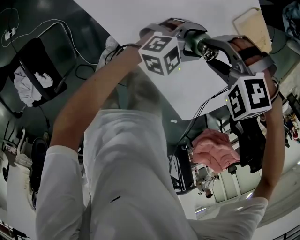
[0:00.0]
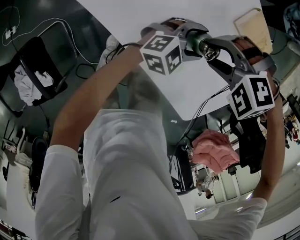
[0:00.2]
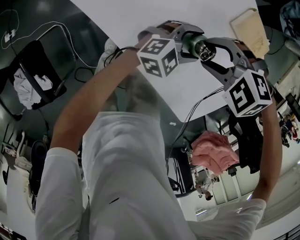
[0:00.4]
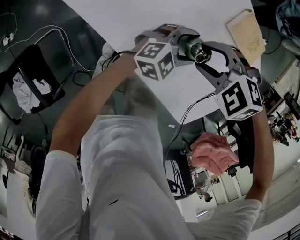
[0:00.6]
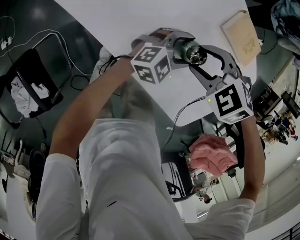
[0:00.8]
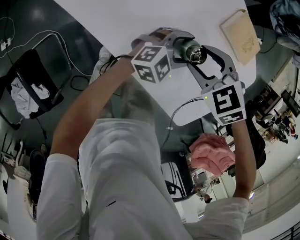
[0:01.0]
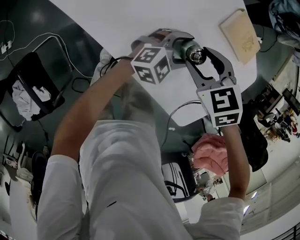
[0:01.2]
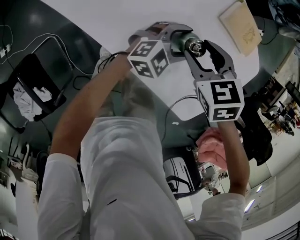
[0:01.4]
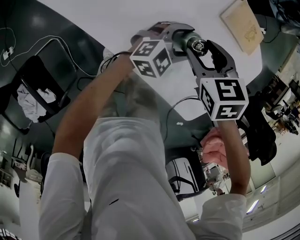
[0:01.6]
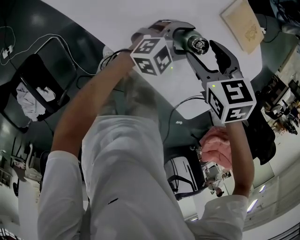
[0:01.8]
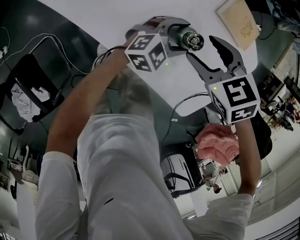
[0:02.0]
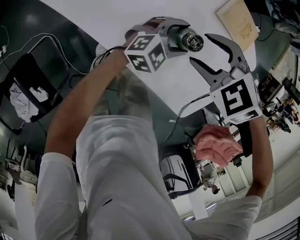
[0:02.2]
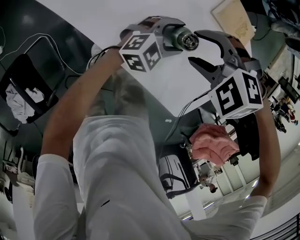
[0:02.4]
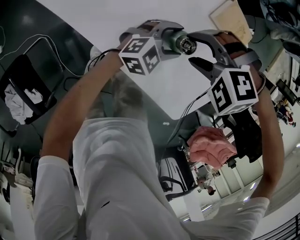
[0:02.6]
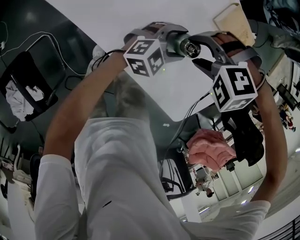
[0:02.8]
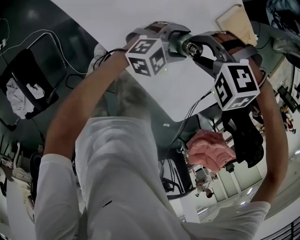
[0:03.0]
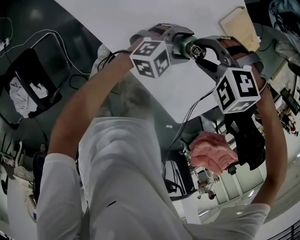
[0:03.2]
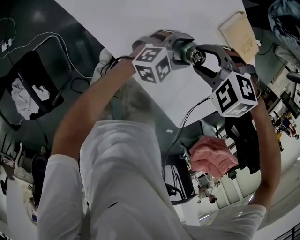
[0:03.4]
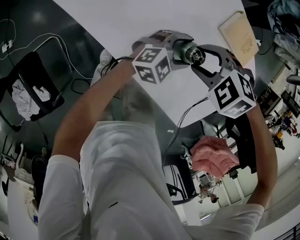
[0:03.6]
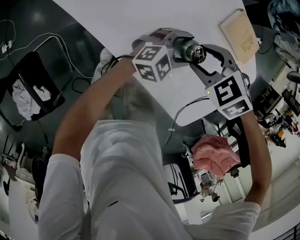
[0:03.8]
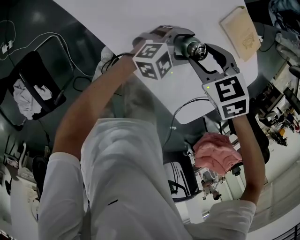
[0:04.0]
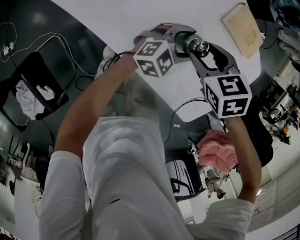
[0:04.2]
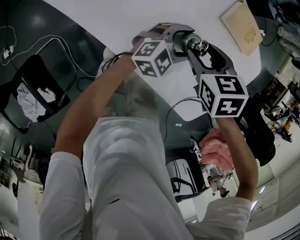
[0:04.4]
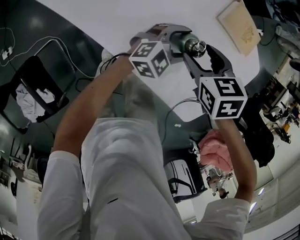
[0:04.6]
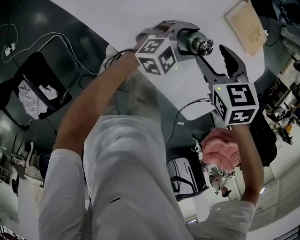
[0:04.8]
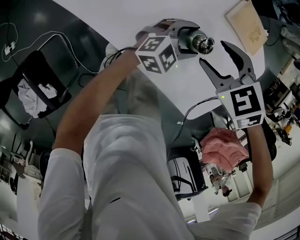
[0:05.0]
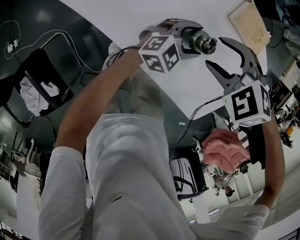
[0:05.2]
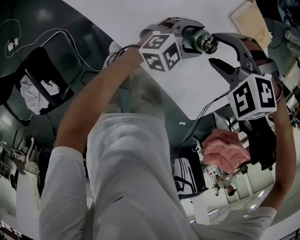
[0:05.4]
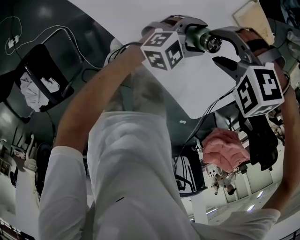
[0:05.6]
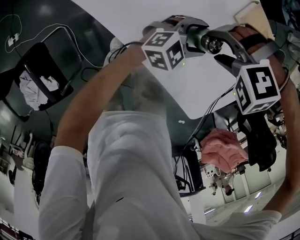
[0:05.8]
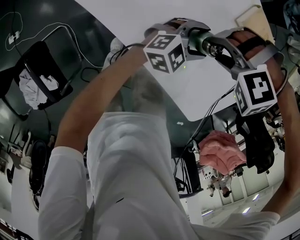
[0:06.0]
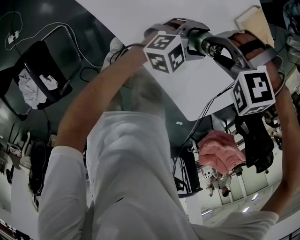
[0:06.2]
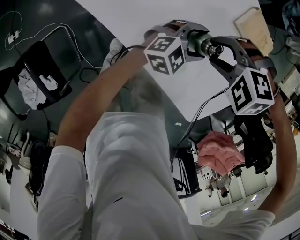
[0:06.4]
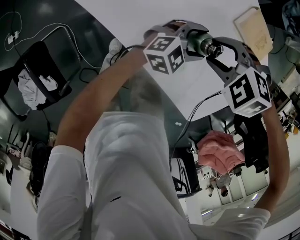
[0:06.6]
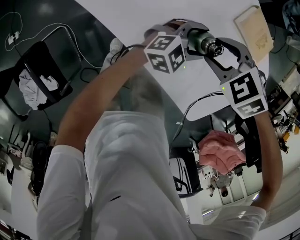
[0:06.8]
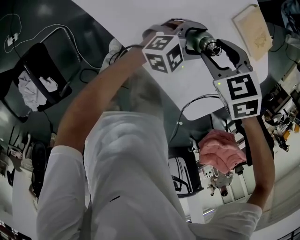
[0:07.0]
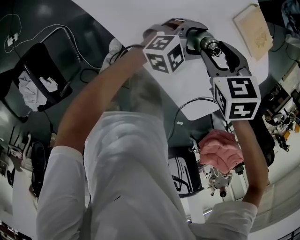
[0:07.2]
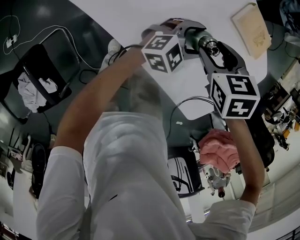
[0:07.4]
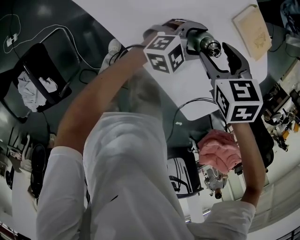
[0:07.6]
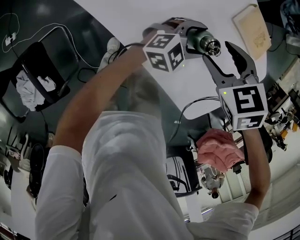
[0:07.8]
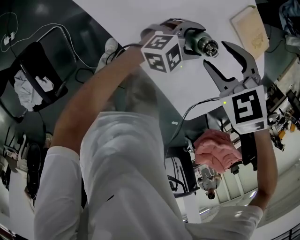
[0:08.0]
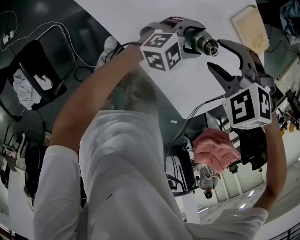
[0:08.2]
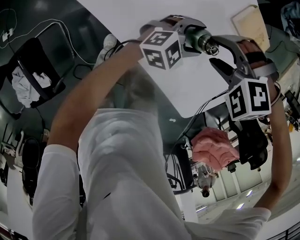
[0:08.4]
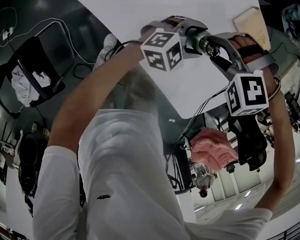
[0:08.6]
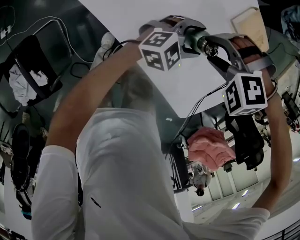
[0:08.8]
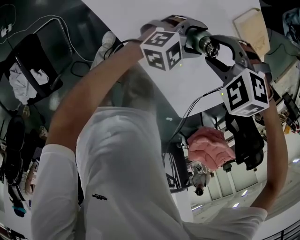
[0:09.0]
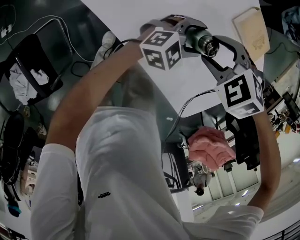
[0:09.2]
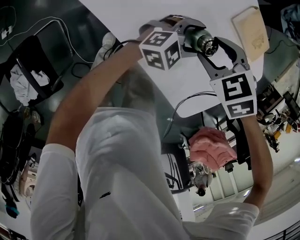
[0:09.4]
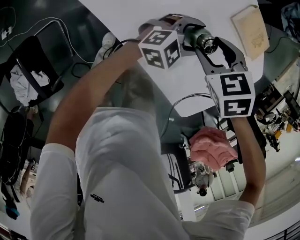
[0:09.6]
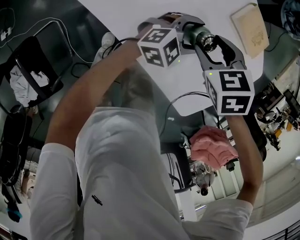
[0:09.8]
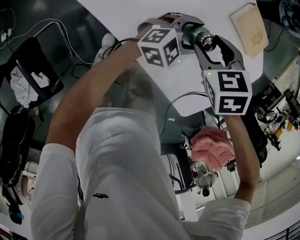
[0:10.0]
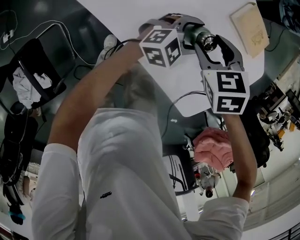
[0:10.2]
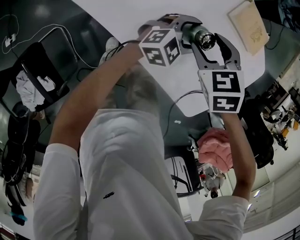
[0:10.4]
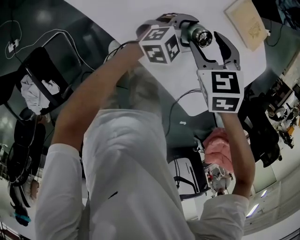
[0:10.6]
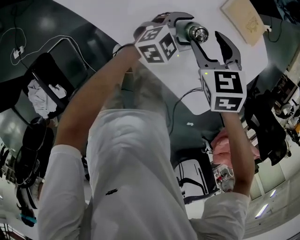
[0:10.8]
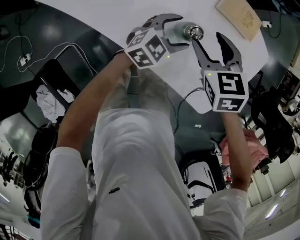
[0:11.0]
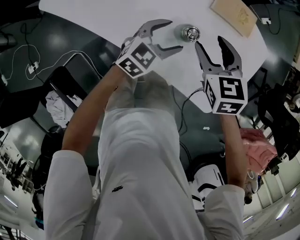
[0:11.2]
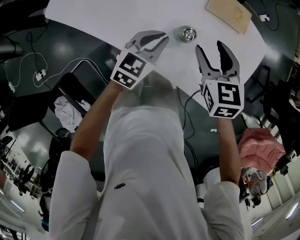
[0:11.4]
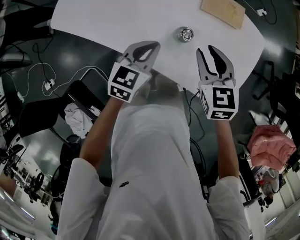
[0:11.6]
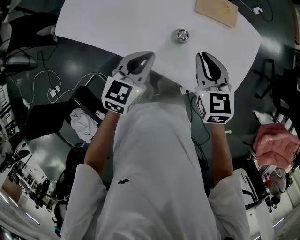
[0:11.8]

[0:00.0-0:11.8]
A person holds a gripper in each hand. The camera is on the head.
0:00.0 to 0:01.4: The right gripper rolls clockwise, seen from behind, by about 80 degrees.
0:01.4 to 0:03.0: The right gripper twists some 80 degrees counterclockwise, seen from behind.
0:03.0 to 0:04.4: The right gripper twists about 90 degrees clockwise, seen from behind.
0:04.4 to 0:06.0: The right gripper twists approximately 100 degrees counterclockwise, seen from behind.
0:06.0 to 0:07.4: The right gripper rolls clockwise, seen from behind, by roughly 100 degrees.
0:07.4 to 0:08.8: The right gripper rolls counterclockwise, seen from behind, by about 90 degrees.
0:08.8 to 0:10.4: The right gripper rotates around the line of its fingers by some 80 degrees, clockwise from behind.
0:10.4 to 0:11.8: The right gripper goes approximately 15 cm upward, tips its fingers upward by some 30 degrees, and closes. The left gripper goes about 25 cm upward, to the left and backward, turns by approximately 20 degrees, and closes up.

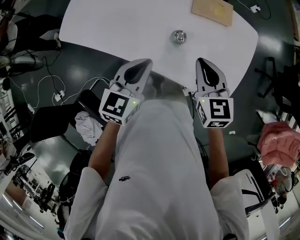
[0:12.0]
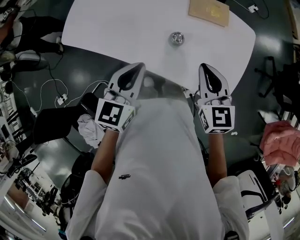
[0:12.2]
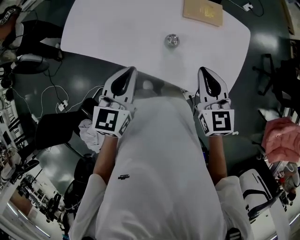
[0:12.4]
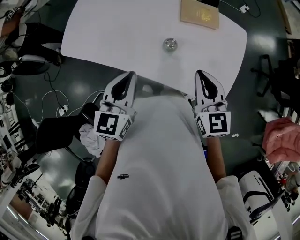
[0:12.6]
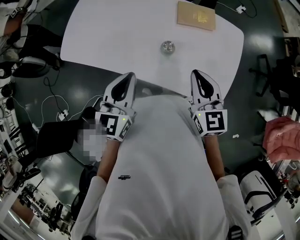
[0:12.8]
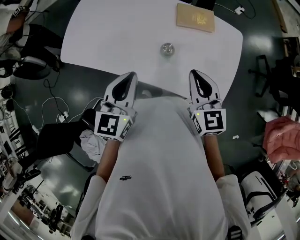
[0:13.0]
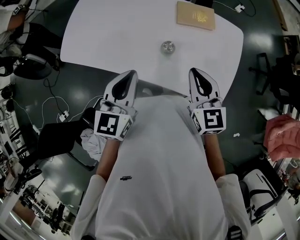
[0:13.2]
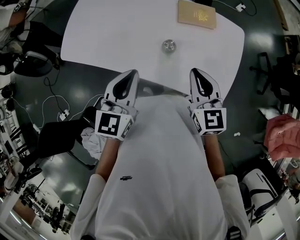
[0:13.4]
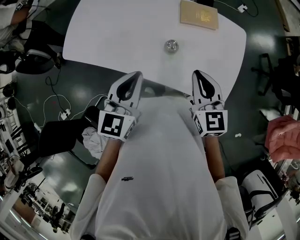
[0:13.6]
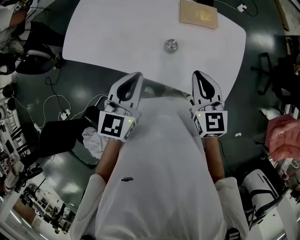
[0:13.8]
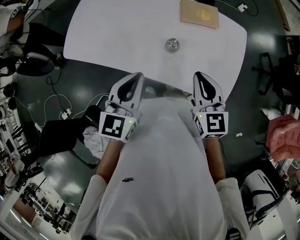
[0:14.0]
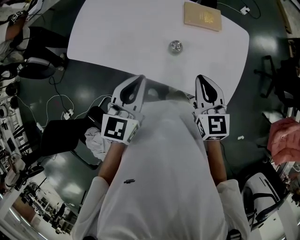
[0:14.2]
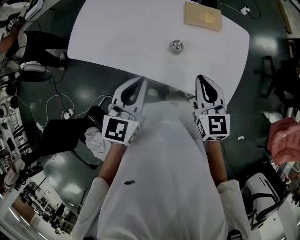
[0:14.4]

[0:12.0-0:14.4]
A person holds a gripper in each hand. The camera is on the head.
0:12.0 to 0:13.2: The left gripper heads upward, covering about 5 cm. Meanwhile the right gripper ends up some 5 cm from where it was.
0:13.2 to 0:14.4: There are only small adjustments of the grippers.

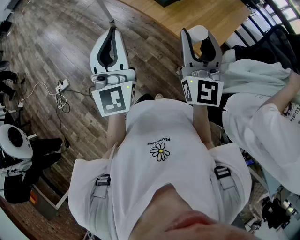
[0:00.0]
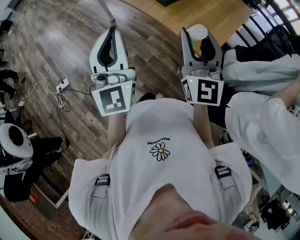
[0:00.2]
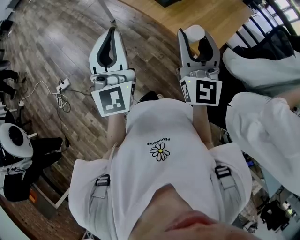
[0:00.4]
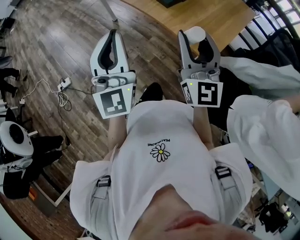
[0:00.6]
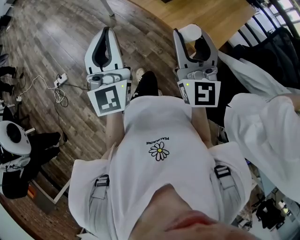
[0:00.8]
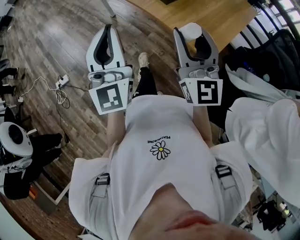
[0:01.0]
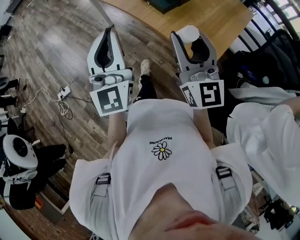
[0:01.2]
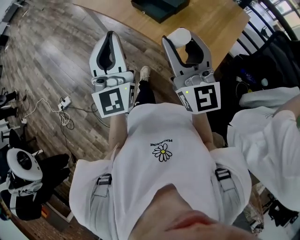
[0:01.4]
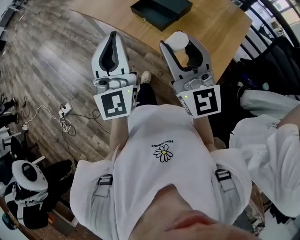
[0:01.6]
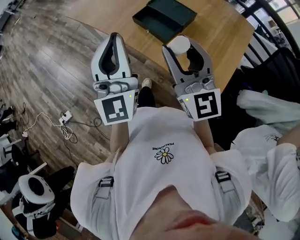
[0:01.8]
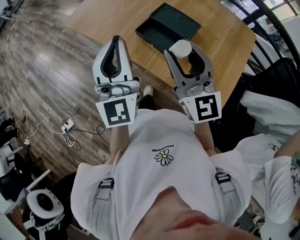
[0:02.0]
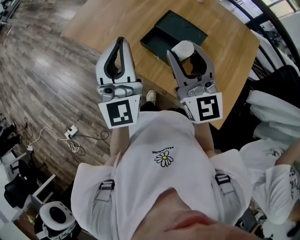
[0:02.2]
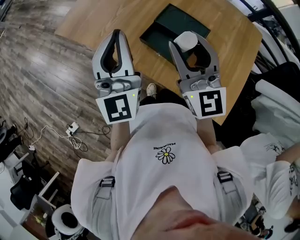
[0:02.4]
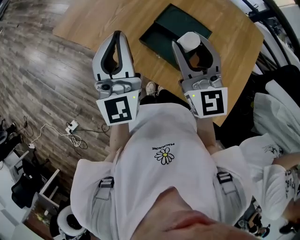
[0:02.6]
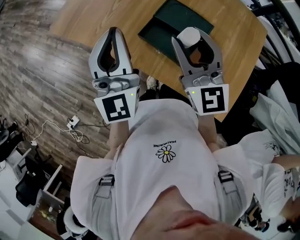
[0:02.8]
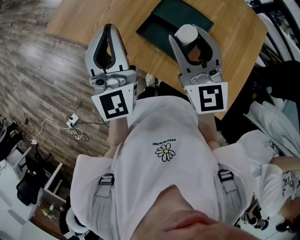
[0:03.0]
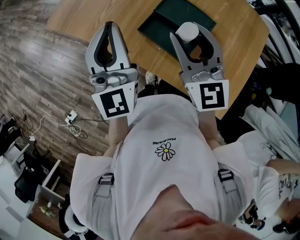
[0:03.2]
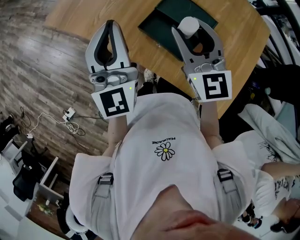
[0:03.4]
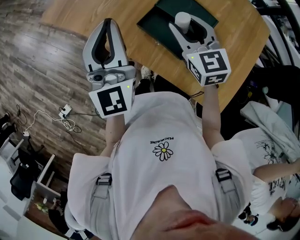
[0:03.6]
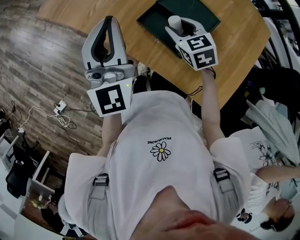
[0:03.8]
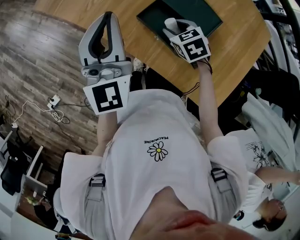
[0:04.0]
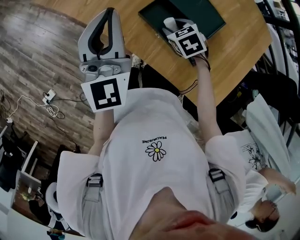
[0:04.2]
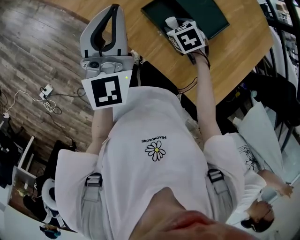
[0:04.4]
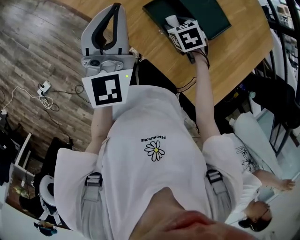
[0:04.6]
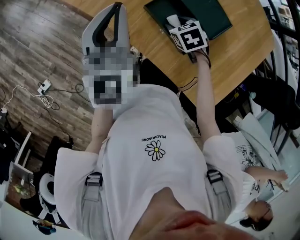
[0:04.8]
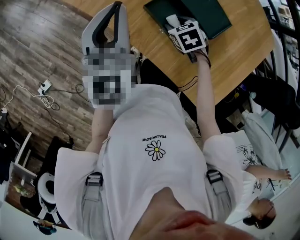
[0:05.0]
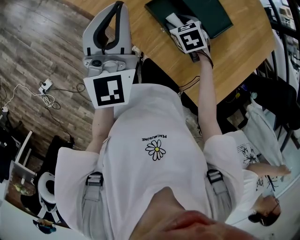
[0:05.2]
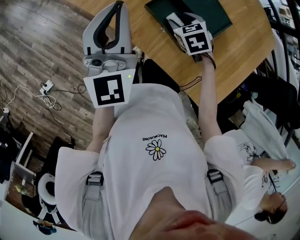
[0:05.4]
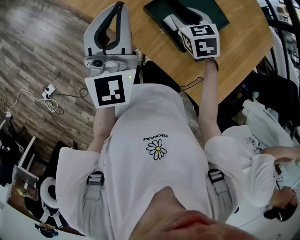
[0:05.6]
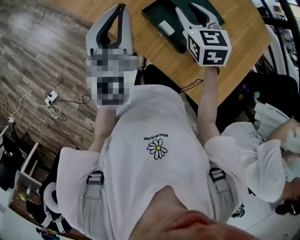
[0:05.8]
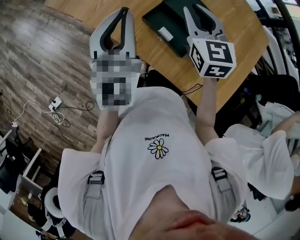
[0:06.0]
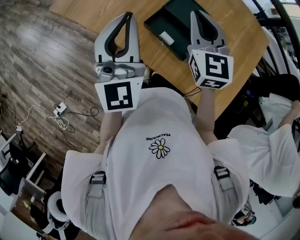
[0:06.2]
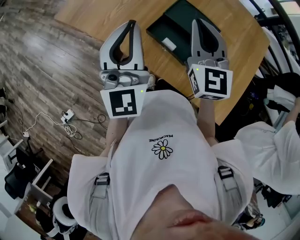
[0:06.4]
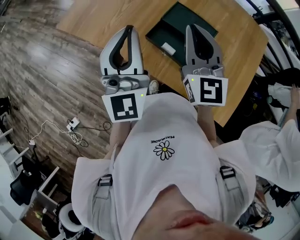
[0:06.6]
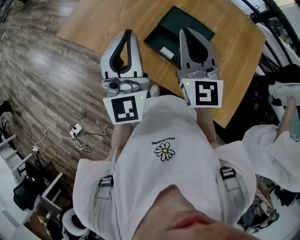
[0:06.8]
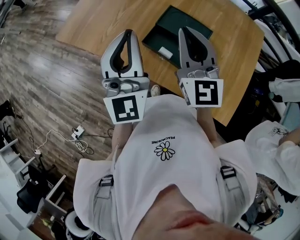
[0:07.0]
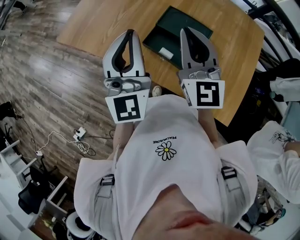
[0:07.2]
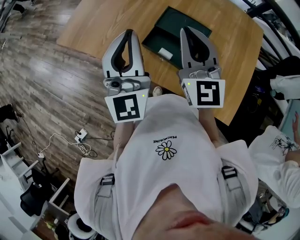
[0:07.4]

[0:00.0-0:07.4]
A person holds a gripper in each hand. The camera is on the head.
0:00.0 to 0:01.4: The grippers both shift forward by roughly 10 cm.
0:01.4 to 0:03.0: Both grippers move forward, approximately 35 cm. The right gripper turns by approximately 20 degrees.
0:03.0 to 0:04.4: The right gripper travels downward by approximately 30 cm, and tilts its fingers about 70 degrees downward; the left gripper travels downward by about 5 cm.
0:04.4 to 0:06.0: The left gripper goes some 5 cm upward. The right gripper is displaced upward by about 25 cm, tips its fingers upward by some 50 degrees, and closes its fingers.
0:06.0 to 0:07.4: The left gripper moves roughly 5 cm; the right gripper shifts some 15 cm upward and backward, and rotates about 30 degrees.

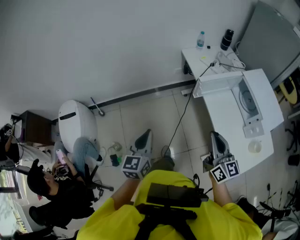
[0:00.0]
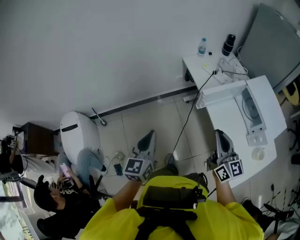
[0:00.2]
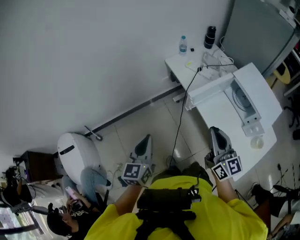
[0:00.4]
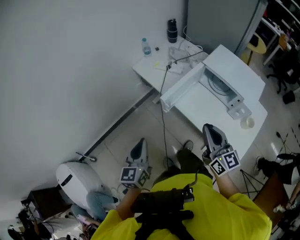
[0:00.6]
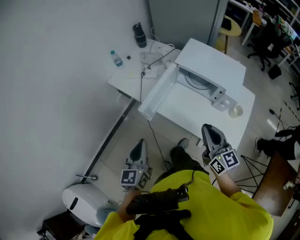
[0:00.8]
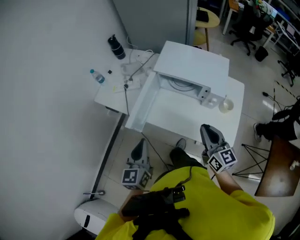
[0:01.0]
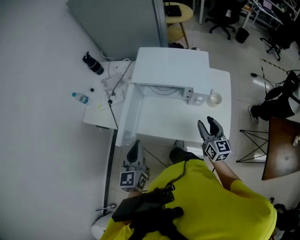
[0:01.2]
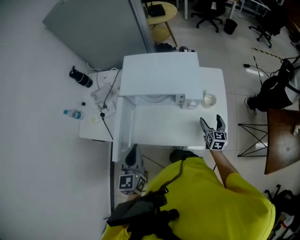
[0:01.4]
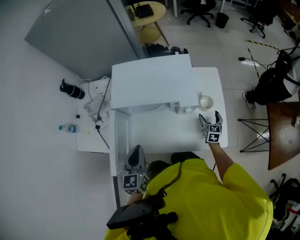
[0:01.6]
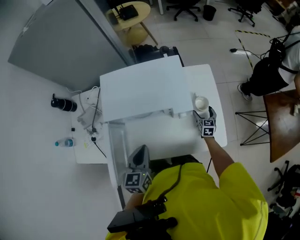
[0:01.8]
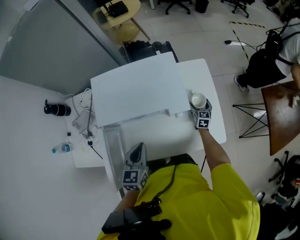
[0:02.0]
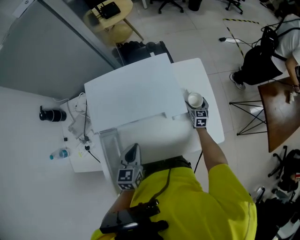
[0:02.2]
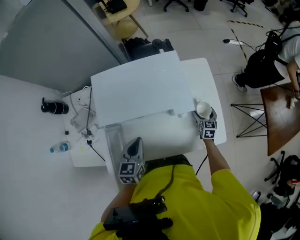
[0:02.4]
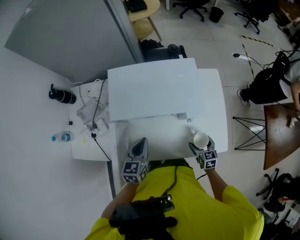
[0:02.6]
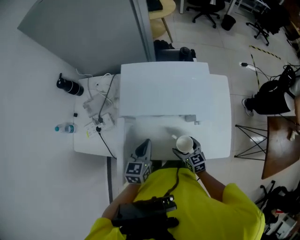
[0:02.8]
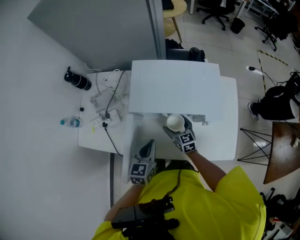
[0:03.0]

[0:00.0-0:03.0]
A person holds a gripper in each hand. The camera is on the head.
0:00.0 to 0:01.6: Both grippers are carried about 50 cm. The right gripper points its fingers about 30 degrees further downward, and opens, while the left gripper changes its angle by roughly 60 degrees.
0:01.6 to 0:03.0: The left gripper moves about 10 cm. The right gripper reaches about 5 cm downward, then returns, and changes its angle by some 30 degrees.
